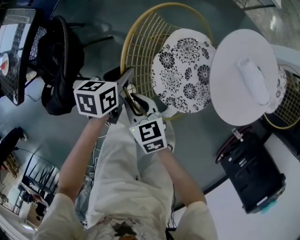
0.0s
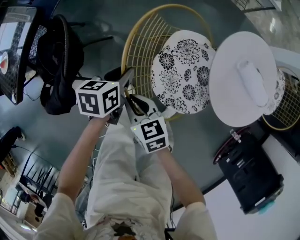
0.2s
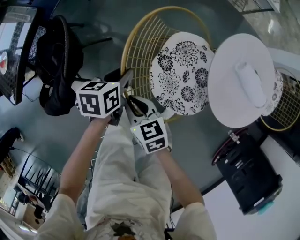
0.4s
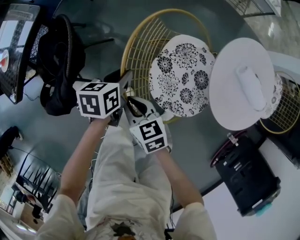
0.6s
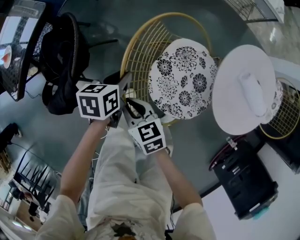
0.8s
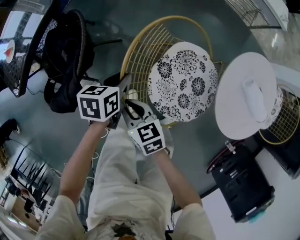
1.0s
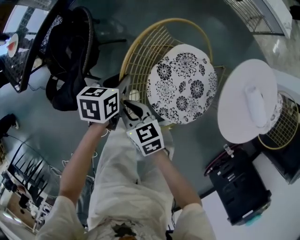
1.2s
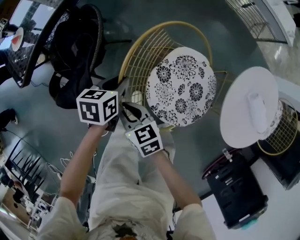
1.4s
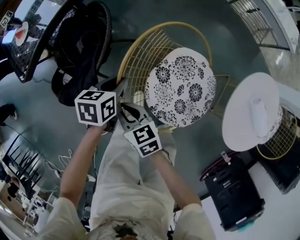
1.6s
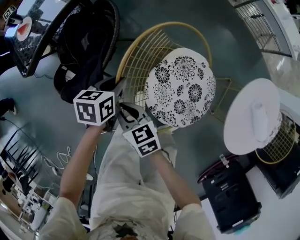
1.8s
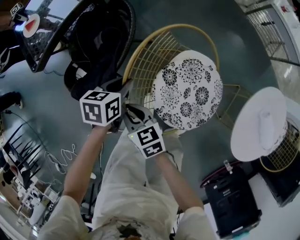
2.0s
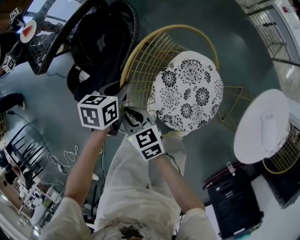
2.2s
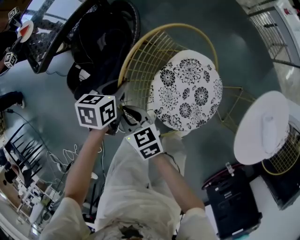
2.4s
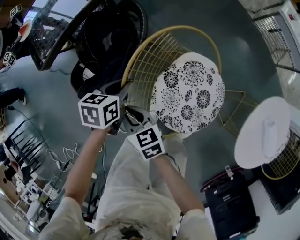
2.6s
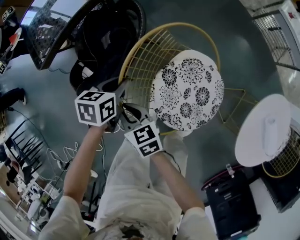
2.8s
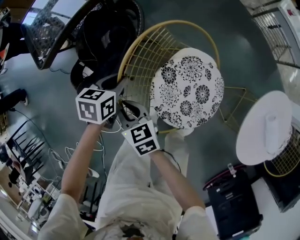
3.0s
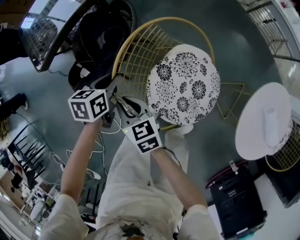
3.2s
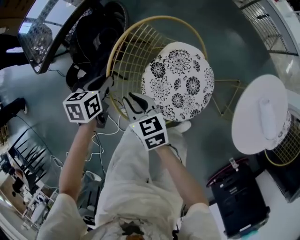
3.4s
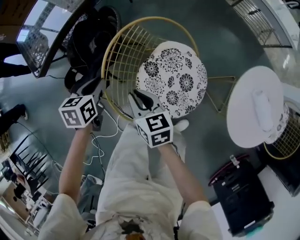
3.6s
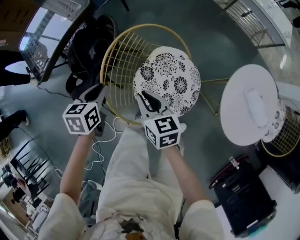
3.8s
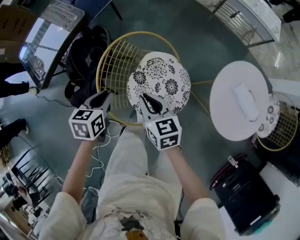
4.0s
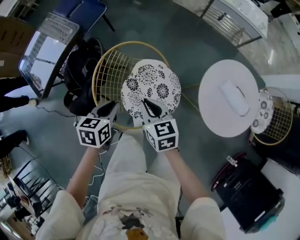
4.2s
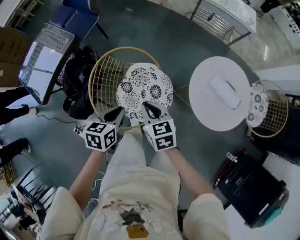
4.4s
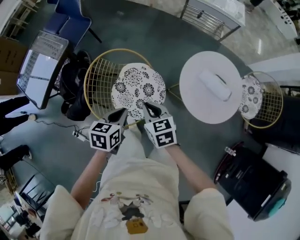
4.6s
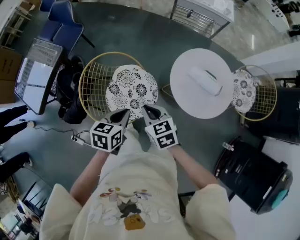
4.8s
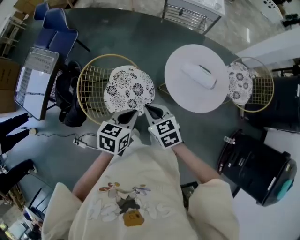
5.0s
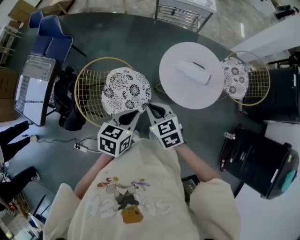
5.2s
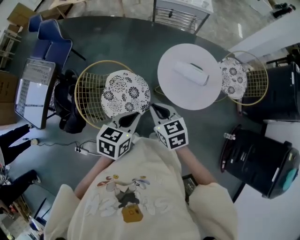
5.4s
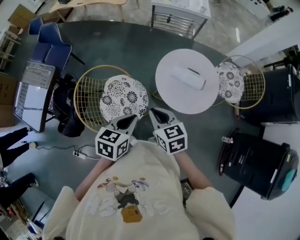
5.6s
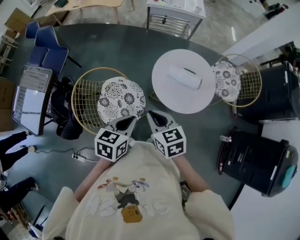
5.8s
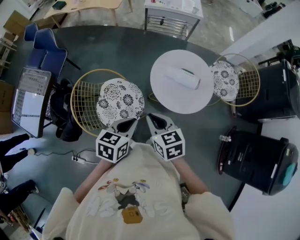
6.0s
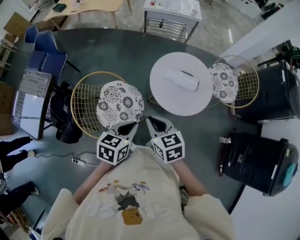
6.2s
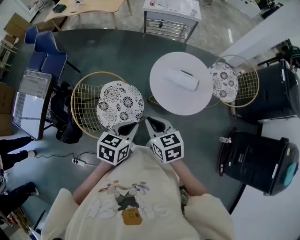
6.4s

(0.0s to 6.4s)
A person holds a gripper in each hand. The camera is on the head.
0.0s - 1.6s: The grippers make only small movements.
1.6s - 3.2s: The right gripper ends up some 5 cm from where it was.
3.2s - 4.8s: The left gripper ends up about 40 cm from where it was, and turns by approximately 30 degrees. The right gripper shifts by some 40 cm, and rotates roughly 30 degrees.
4.8s - 6.4s: Both grippers move to the right and upward, some 15 cm.

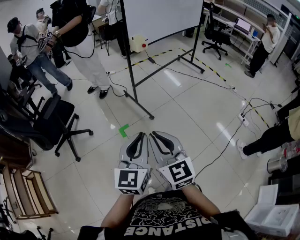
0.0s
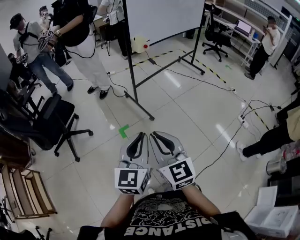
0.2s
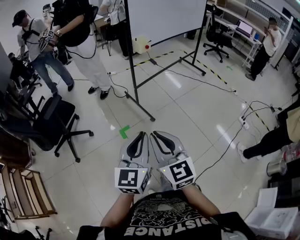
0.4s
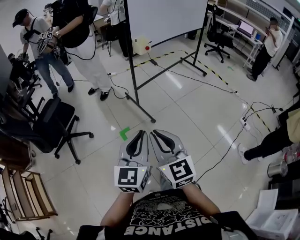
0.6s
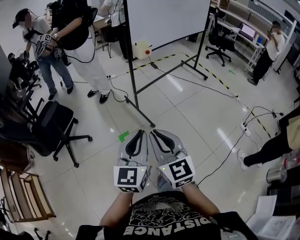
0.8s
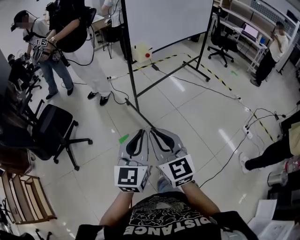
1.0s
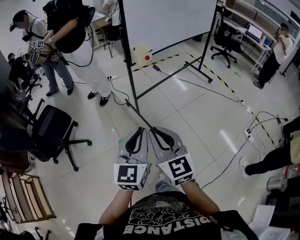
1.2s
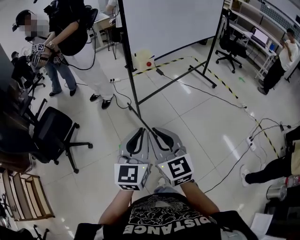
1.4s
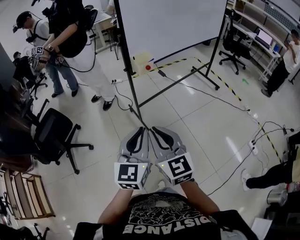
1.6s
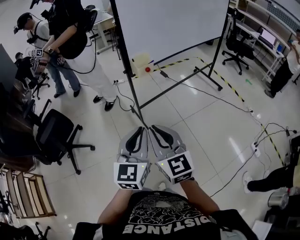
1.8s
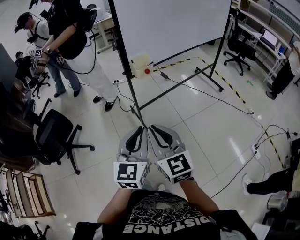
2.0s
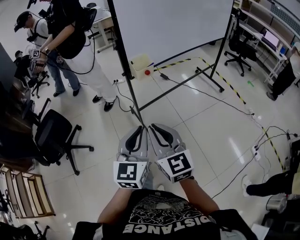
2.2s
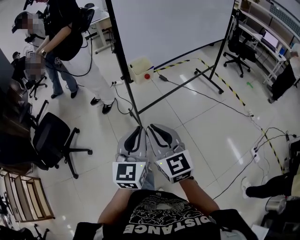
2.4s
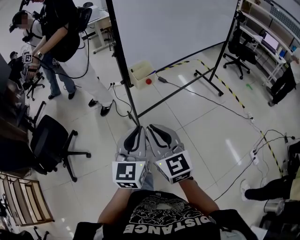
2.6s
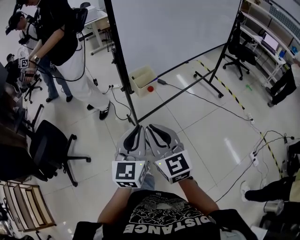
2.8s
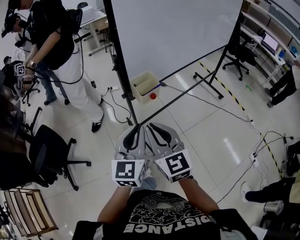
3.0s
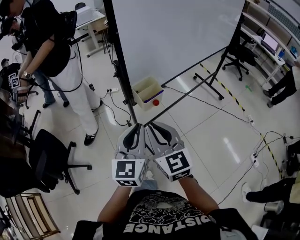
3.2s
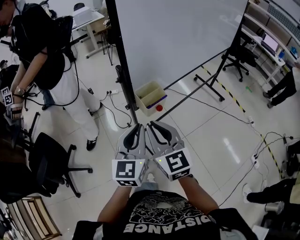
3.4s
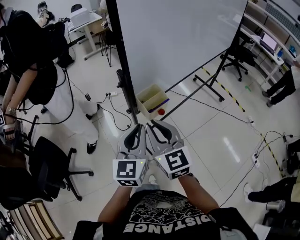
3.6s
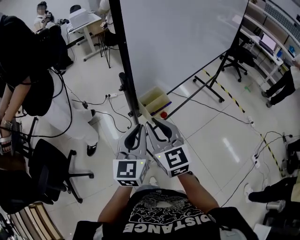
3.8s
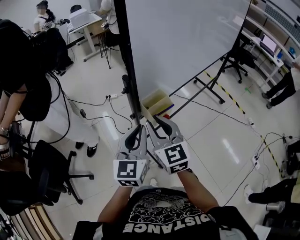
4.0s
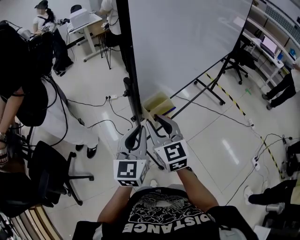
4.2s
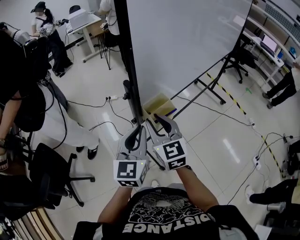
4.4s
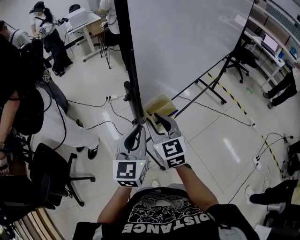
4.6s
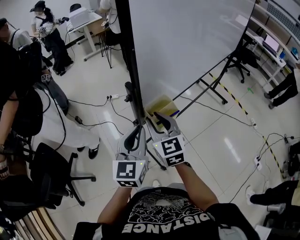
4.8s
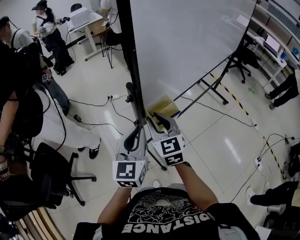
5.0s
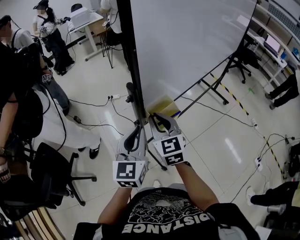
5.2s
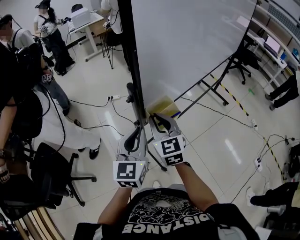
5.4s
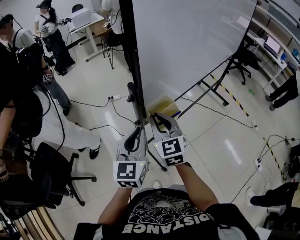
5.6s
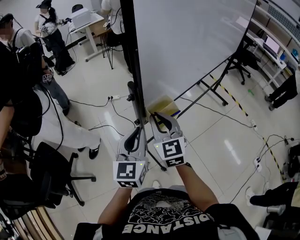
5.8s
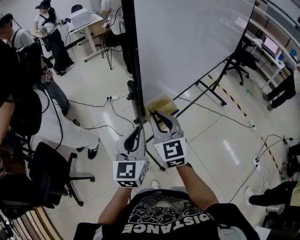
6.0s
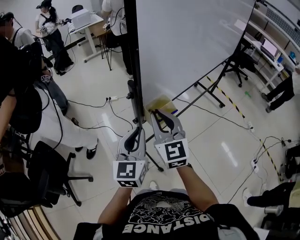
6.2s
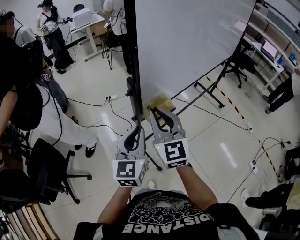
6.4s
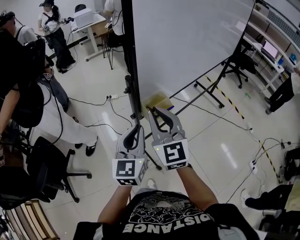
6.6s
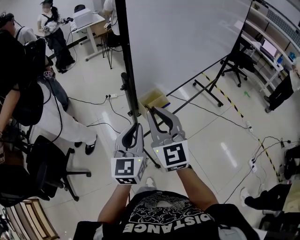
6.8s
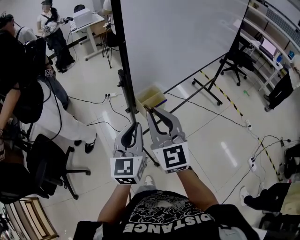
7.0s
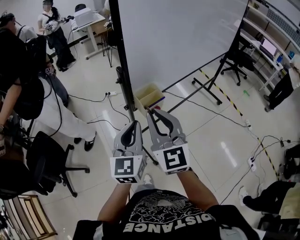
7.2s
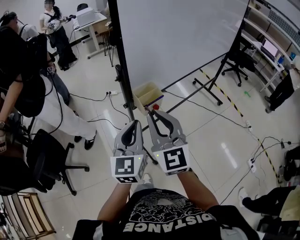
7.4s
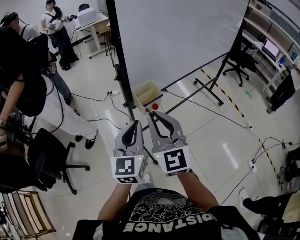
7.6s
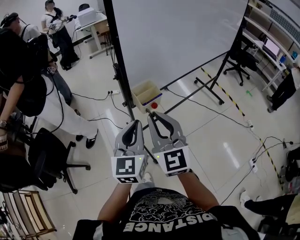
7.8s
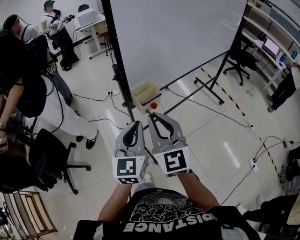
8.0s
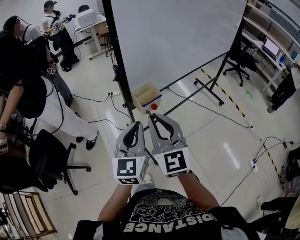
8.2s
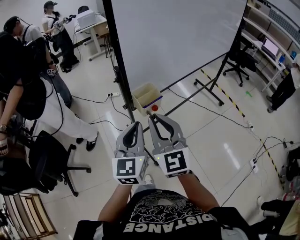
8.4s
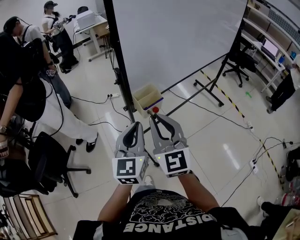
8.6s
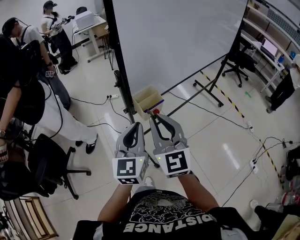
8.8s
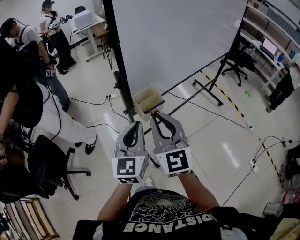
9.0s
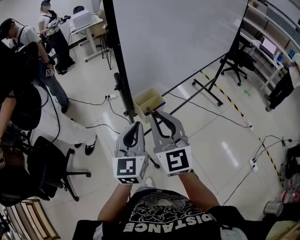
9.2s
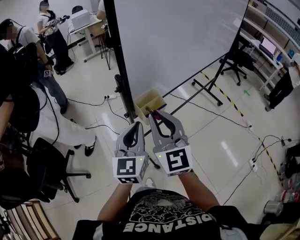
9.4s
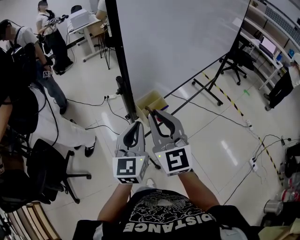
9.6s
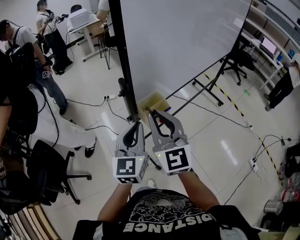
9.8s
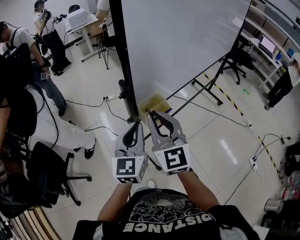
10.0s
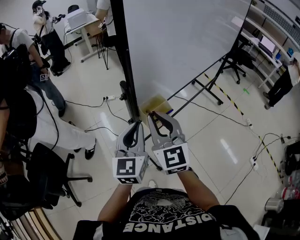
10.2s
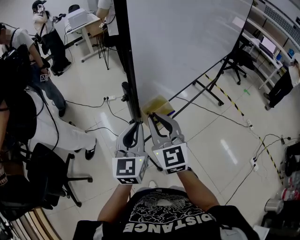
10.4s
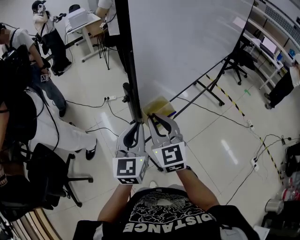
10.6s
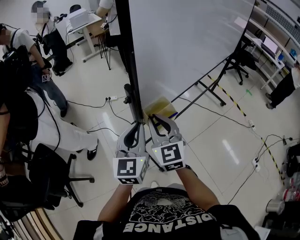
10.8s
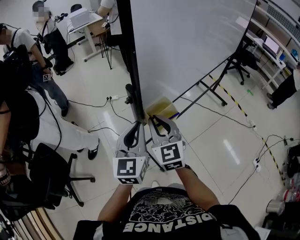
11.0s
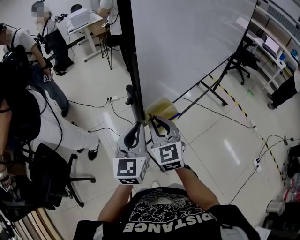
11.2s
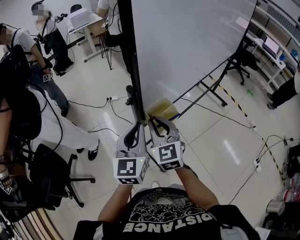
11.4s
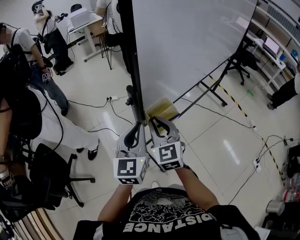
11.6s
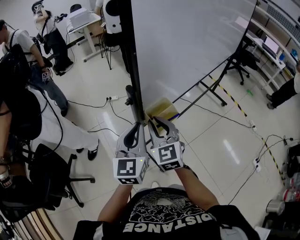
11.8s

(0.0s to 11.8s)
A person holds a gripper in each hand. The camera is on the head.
0.0s - 1.4s: The grippers both shift forward by roughly 25 cm.
1.4s - 3.0s: Both grippers move forward, roughly 30 cm.
3.0s - 4.4s: The two grippers go roughly 15 cm forward.
4.4s - 6.0s: There are only small adjustments of the grippers.
6.0s - 7.4s: The right gripper goes about 15 cm backward and upward. Meanwhile the left gripper goes about 10 cm backward.
7.4s - 8.8s: The grippers stay close to where they were, moving slightly.
8.8s - 10.4s: The two grippers go about 10 cm forward.
10.4s - 11.8s: The right gripper goes roughly 5 cm downward.

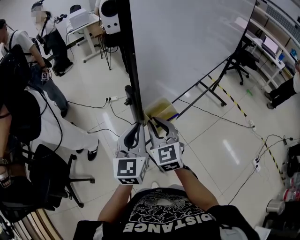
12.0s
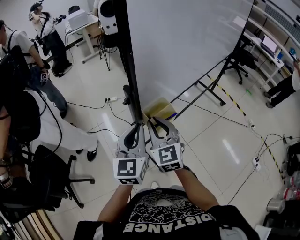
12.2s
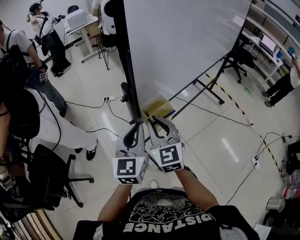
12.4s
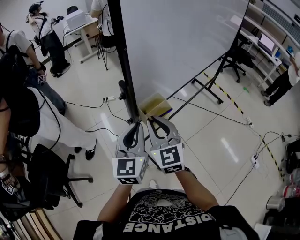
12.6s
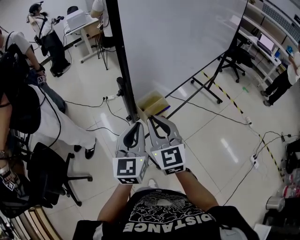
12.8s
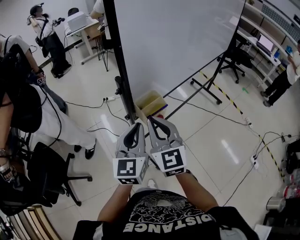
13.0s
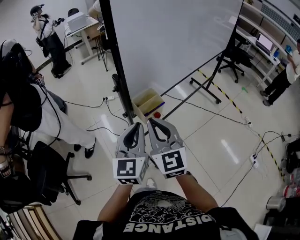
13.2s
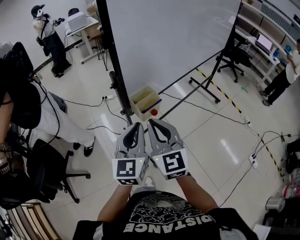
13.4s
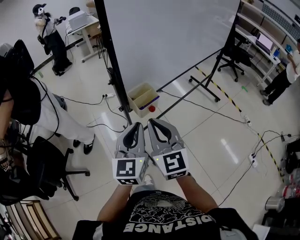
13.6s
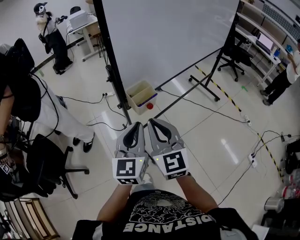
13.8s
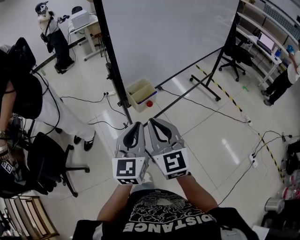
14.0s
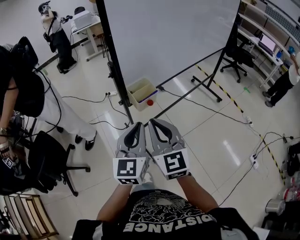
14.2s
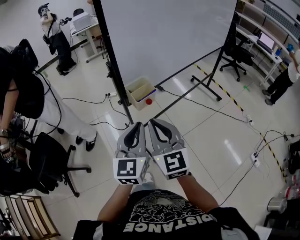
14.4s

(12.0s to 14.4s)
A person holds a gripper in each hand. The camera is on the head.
12.0s - 13.2s: The right gripper heads backward and upward, covering some 10 cm. The left gripper heads backward, covering about 5 cm.
13.2s - 14.4s: Both grippers travel together backward, approximately 10 cm.

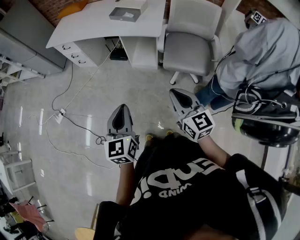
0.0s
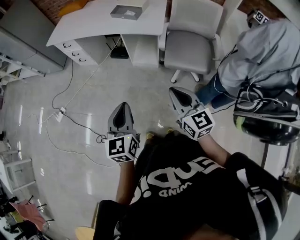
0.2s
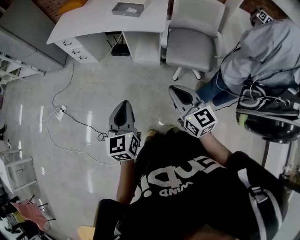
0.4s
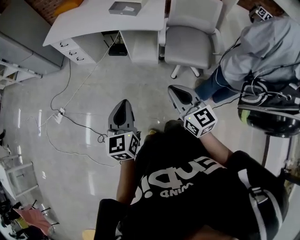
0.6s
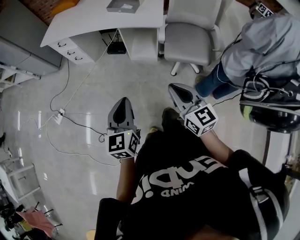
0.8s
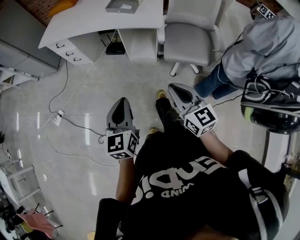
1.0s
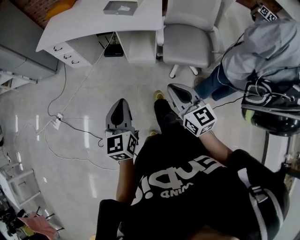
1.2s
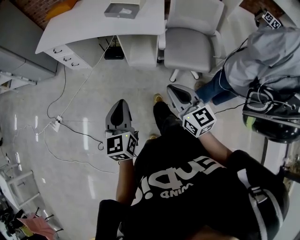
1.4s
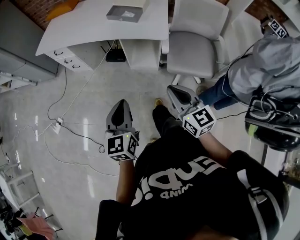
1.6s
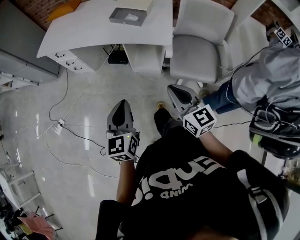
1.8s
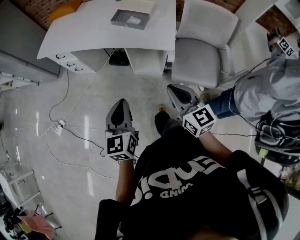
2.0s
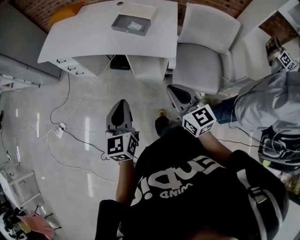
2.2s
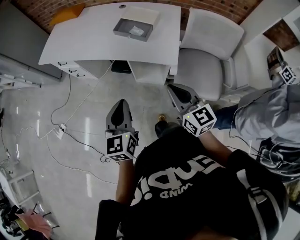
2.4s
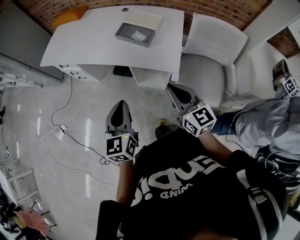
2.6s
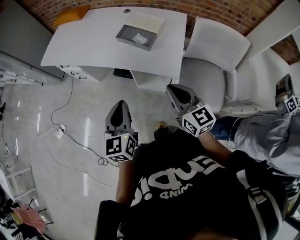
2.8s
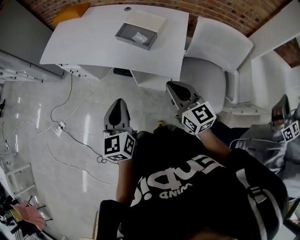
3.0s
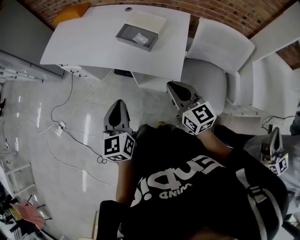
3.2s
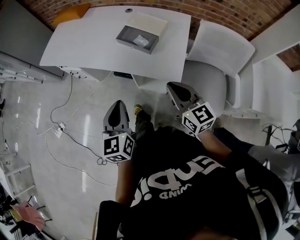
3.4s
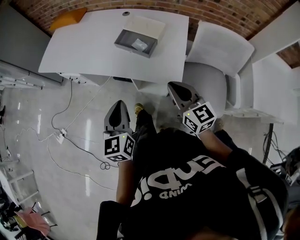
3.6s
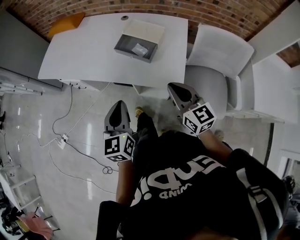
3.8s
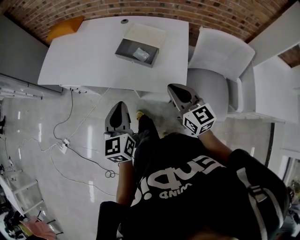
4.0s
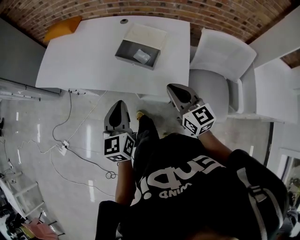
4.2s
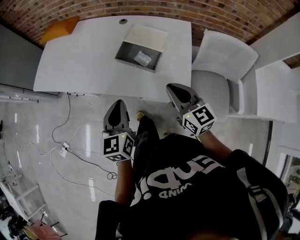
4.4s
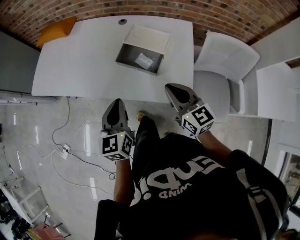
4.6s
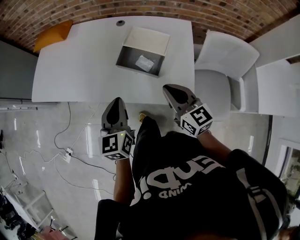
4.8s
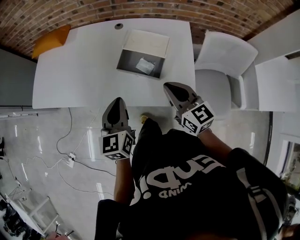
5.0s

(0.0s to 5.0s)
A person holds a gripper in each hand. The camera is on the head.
0.0s - 1.6s: The grippers both shift forward by approximately 15 cm.
1.6s - 3.4s: The two grippers go about 30 cm forward.
3.4s - 5.0s: The two grippers go roughly 25 cm forward.
